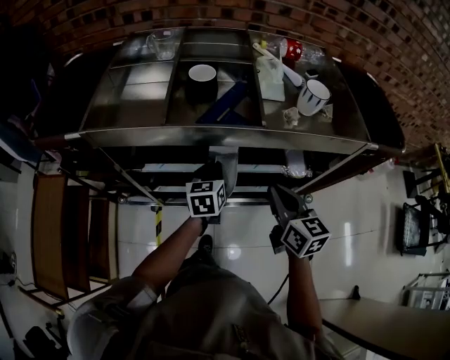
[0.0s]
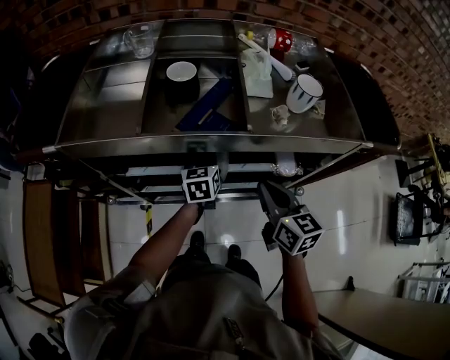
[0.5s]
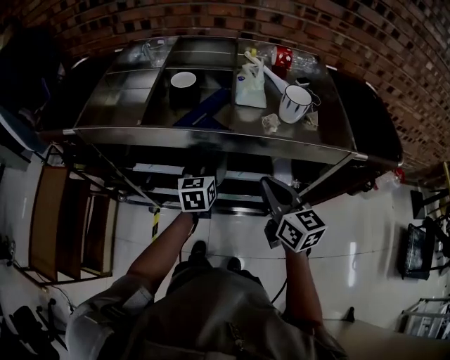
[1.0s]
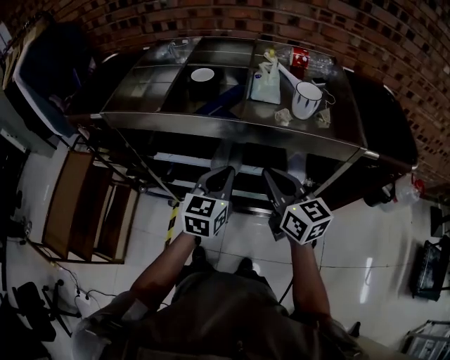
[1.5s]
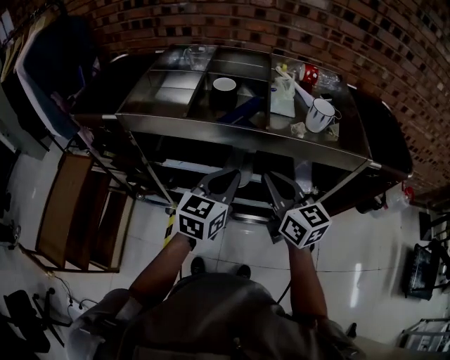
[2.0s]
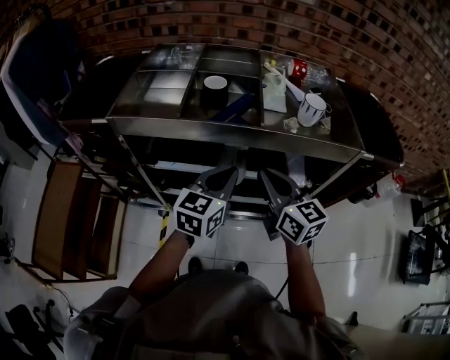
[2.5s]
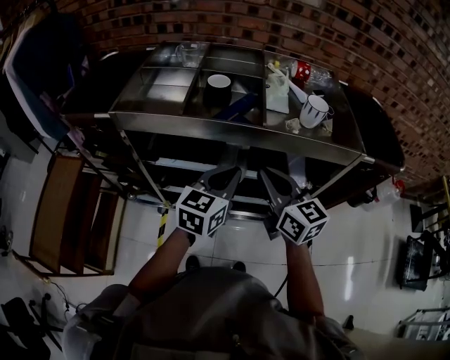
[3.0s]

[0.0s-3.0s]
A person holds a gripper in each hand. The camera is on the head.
0.0s to 1.5s: The right gripper shifts by some 5 cm, and rotates about 20 degrees; the left gripper heads upward, backward and to the right, covering about 15 cm, and opens and closes again.
1.5s to 3.0s: The left gripper changes place by approximately 5 cm. Meanwhile the right gripper goes about 5 cm to the left.

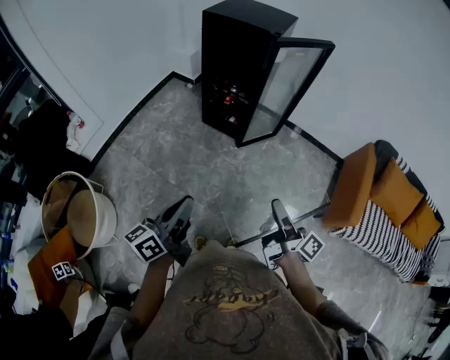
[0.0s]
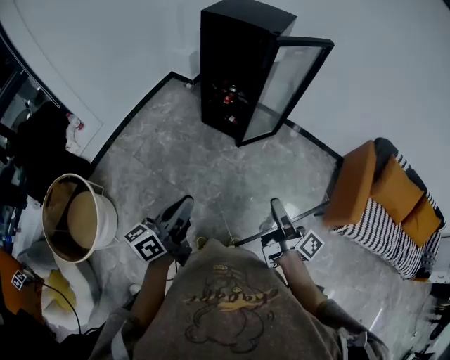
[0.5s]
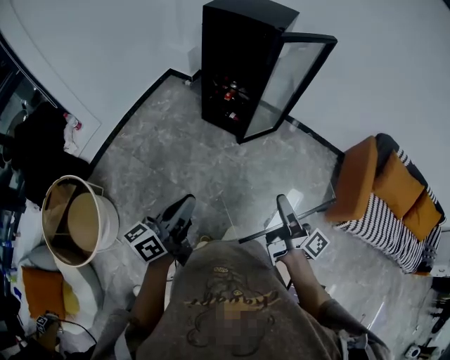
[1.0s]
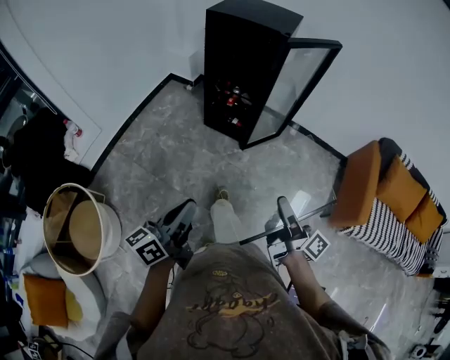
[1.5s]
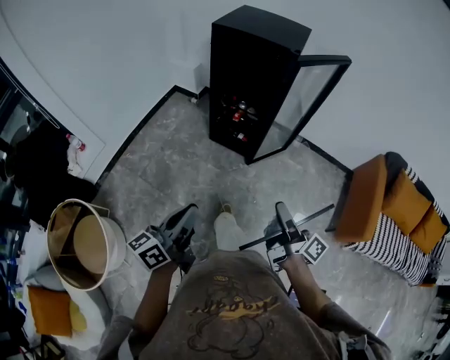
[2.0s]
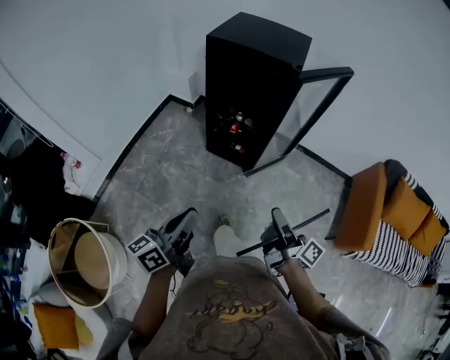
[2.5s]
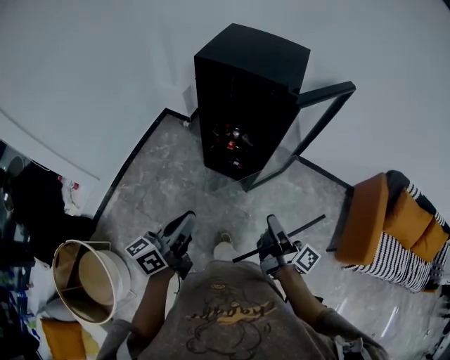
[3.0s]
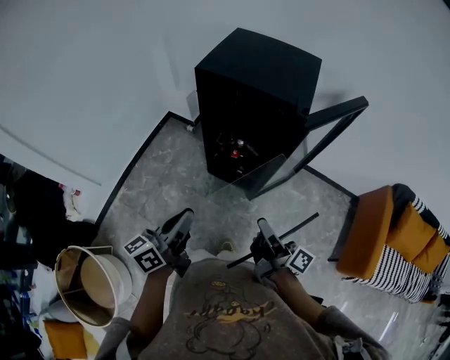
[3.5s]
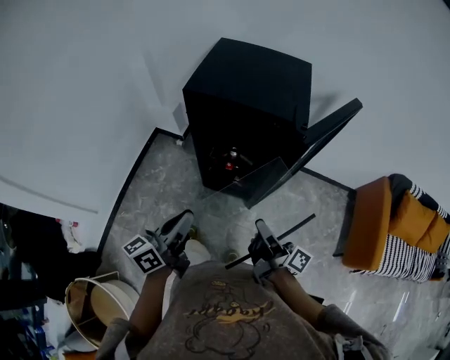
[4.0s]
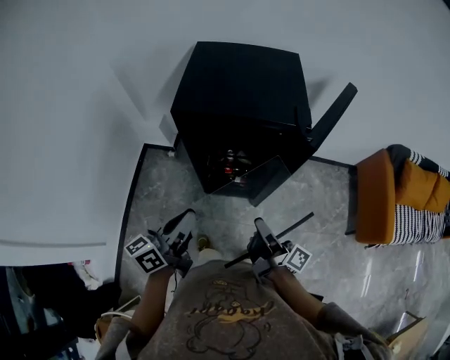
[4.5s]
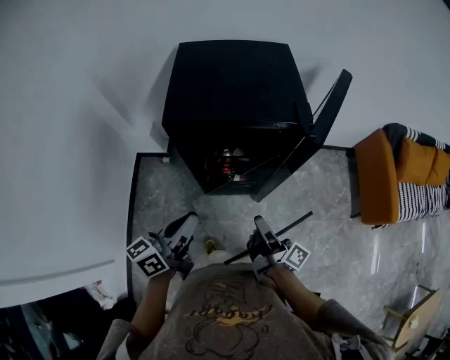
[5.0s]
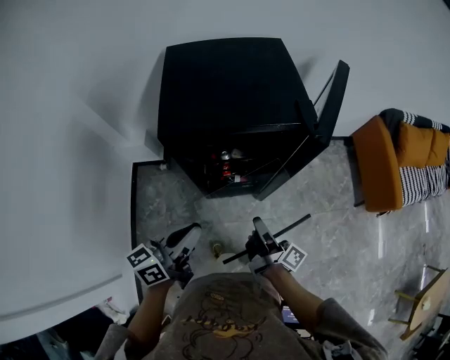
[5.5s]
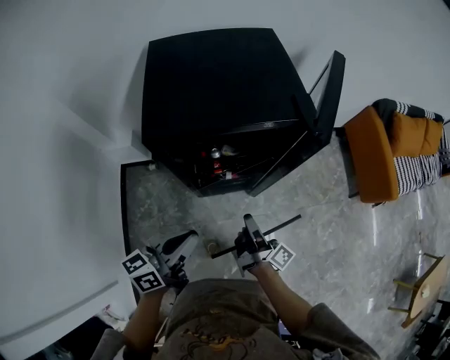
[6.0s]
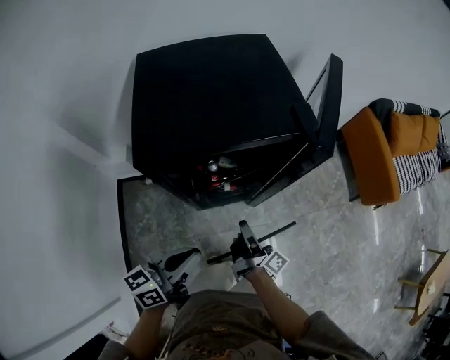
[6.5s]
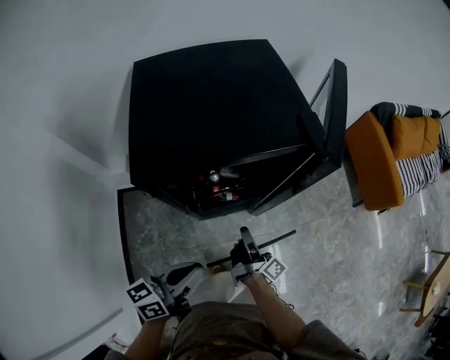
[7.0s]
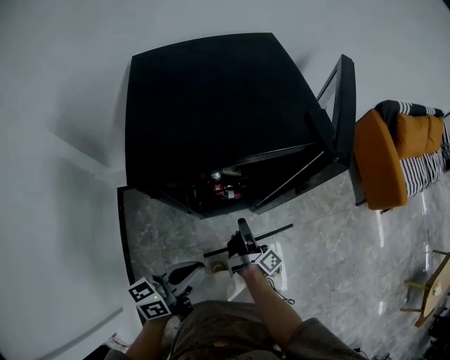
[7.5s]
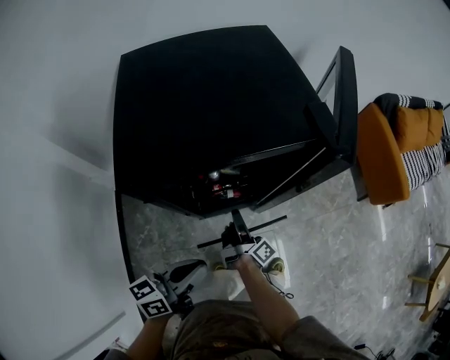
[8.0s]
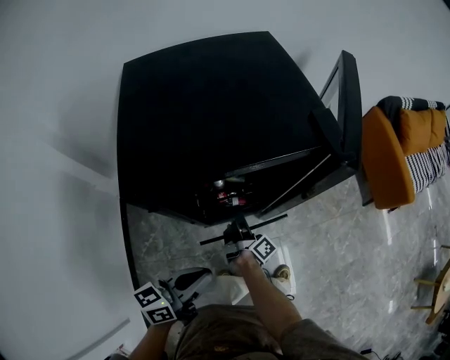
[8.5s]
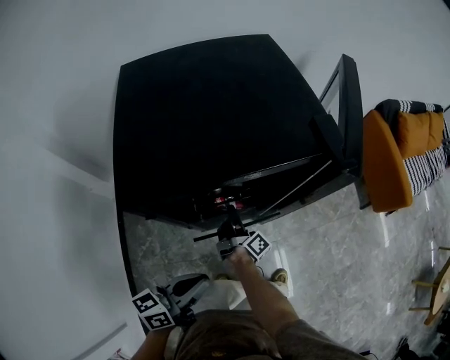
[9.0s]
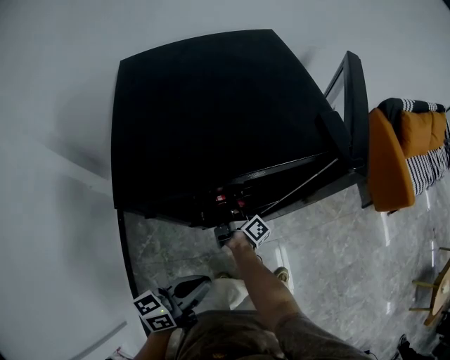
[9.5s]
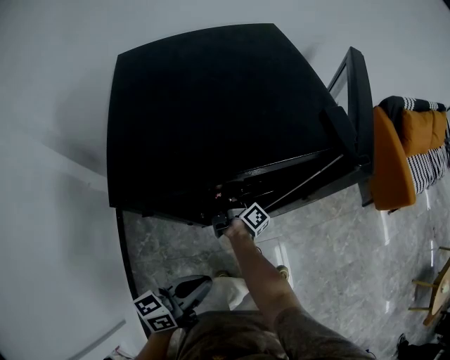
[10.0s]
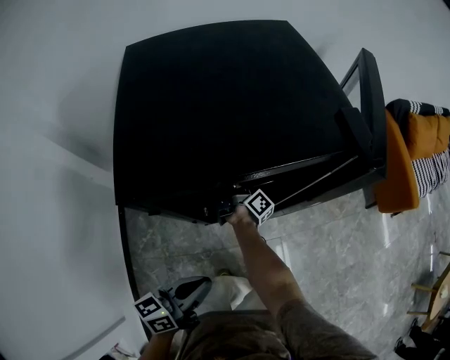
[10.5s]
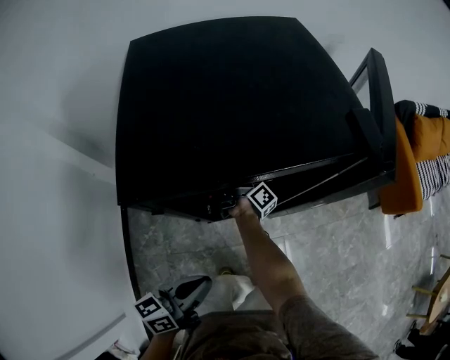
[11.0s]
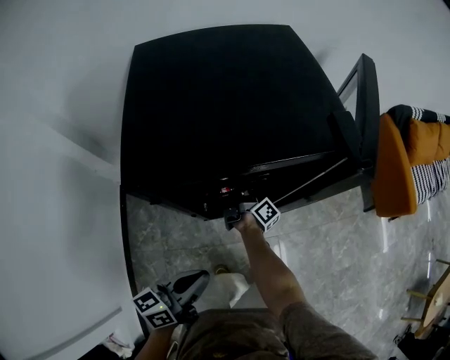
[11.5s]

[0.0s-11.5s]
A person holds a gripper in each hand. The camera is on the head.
0.0s to 2.0s: The left gripper changes place by some 15 cm.
2.0s to 4.0s: The left gripper moves some 35 cm.
4.0s to 6.0s: The left gripper ends up approximately 15 cm from where it was, and turns by roughly 40 degrees.
6.0s to 7.5s: The left gripper shifts about 5 cm downward.

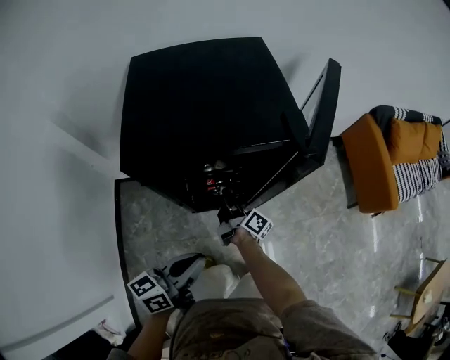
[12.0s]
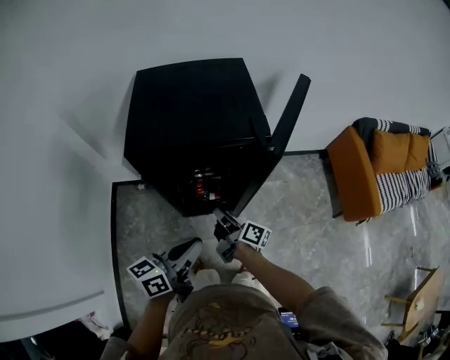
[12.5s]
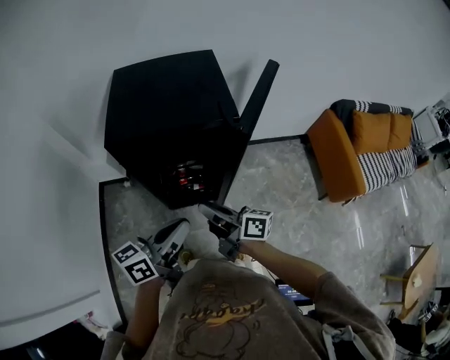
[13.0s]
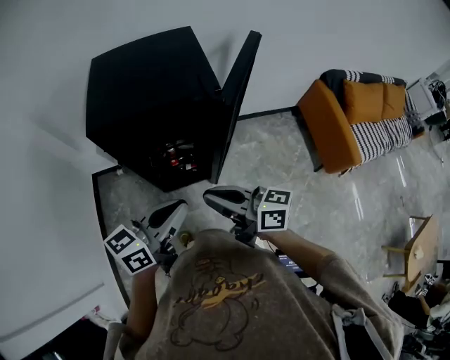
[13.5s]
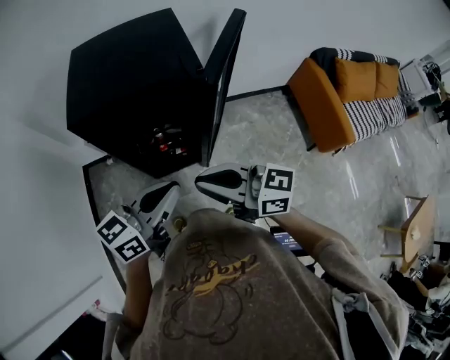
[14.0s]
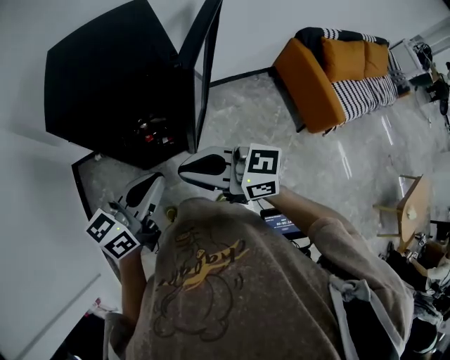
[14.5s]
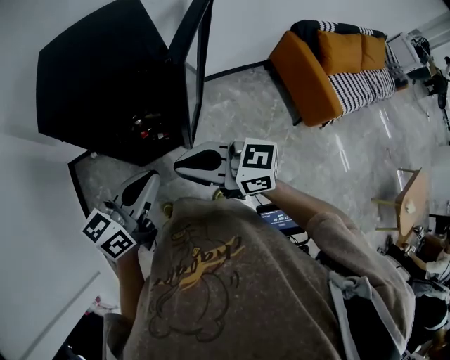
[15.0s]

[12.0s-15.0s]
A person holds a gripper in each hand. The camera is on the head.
12.0s to 13.5s: The left gripper heads upward, covering some 15 cm.

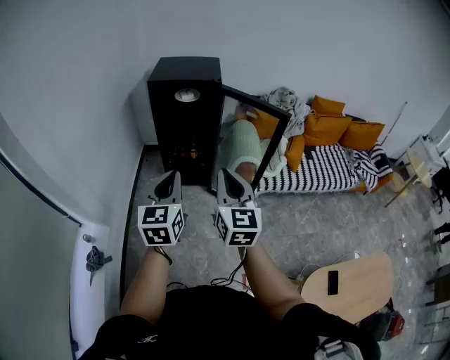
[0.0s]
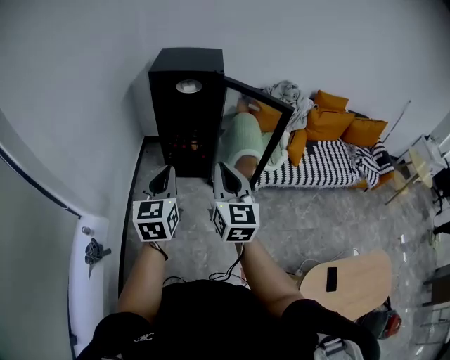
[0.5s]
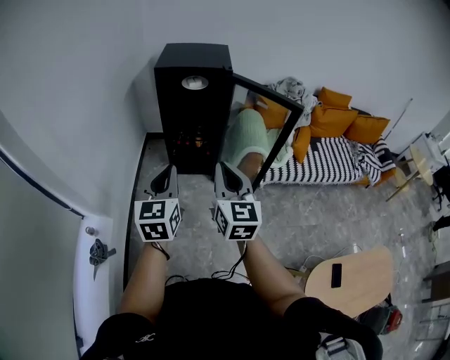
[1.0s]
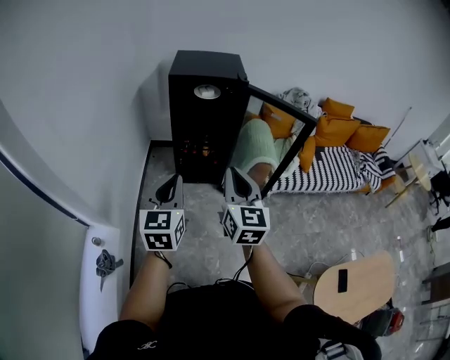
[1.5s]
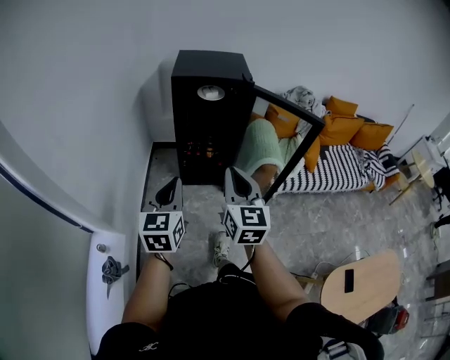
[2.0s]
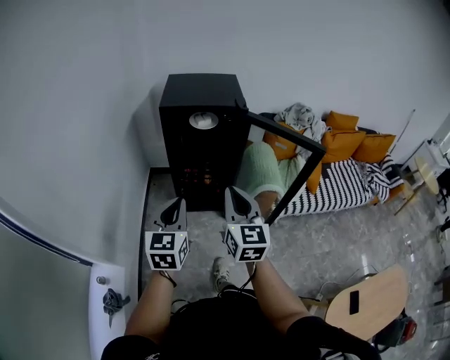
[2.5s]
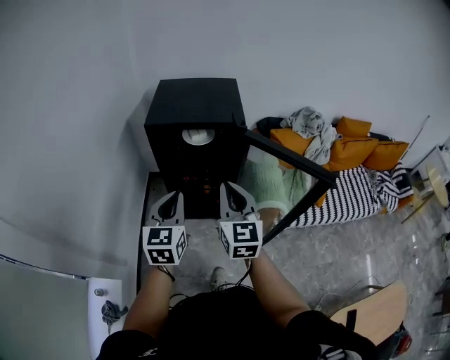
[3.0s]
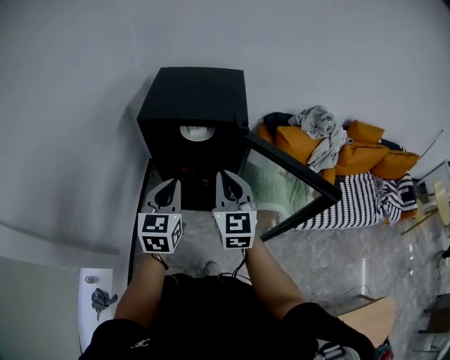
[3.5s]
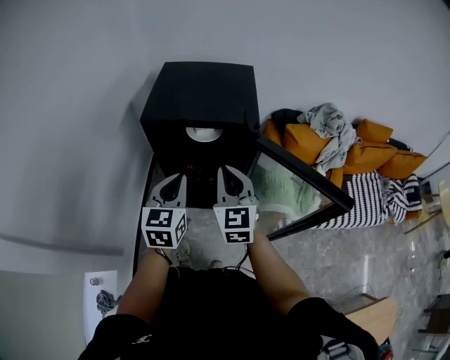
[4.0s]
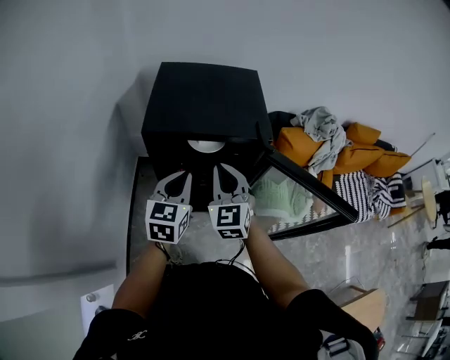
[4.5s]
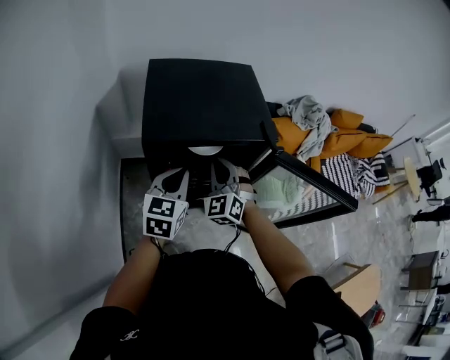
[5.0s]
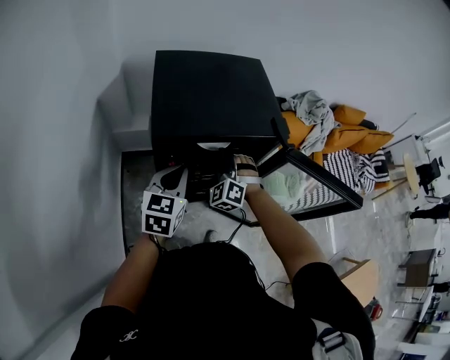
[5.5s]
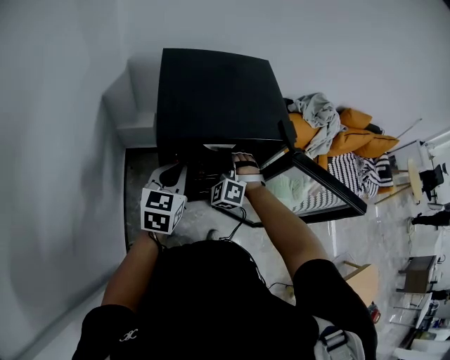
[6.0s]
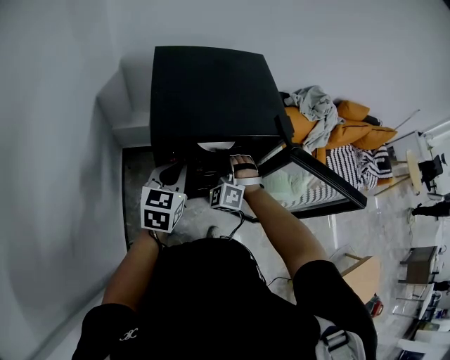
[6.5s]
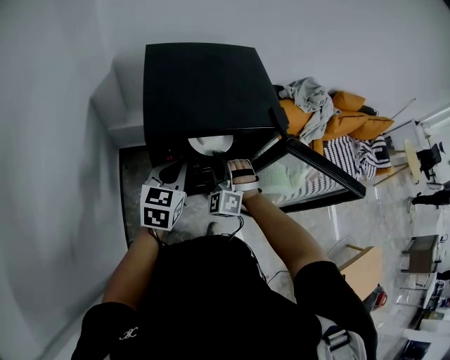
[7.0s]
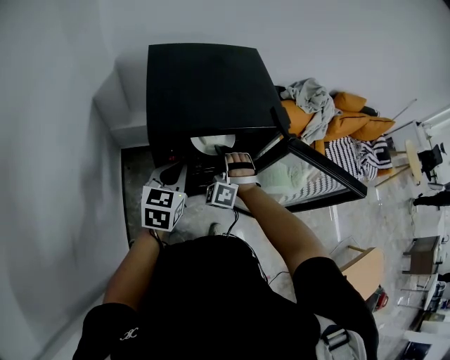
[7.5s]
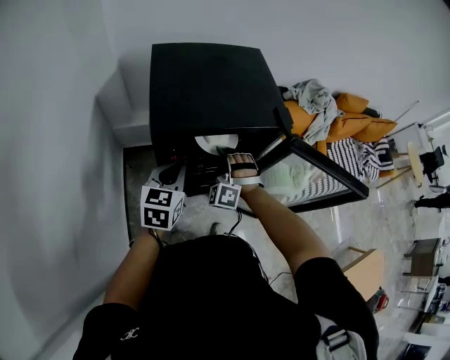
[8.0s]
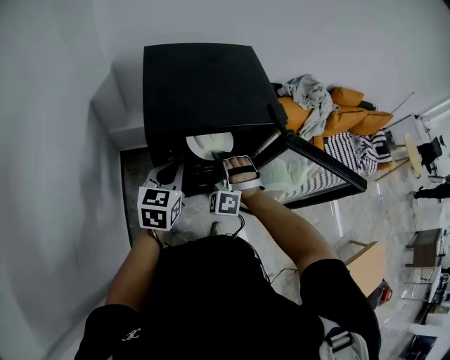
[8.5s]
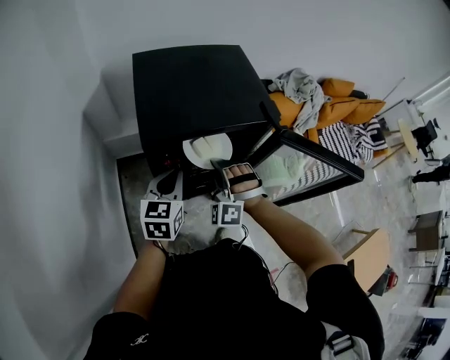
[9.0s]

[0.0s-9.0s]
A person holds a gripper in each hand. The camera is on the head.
0.0s to 2.0s: The grippers both shift to the left and forward by approximately 15 cm.
2.0s to 4.5s: Both grippers are carried forward, roughly 40 cm. The right gripper rotates about 30 degrees.
4.5s to 7.0s: The left gripper moves to the left and downward, approximately 10 cm. Meanwhile the right gripper goes roughly 15 cm downward, twists about 50 degrees counterclockwise, seen from behind, and opens.
7.0s to 9.0s: The right gripper shifts by some 5 cm.
